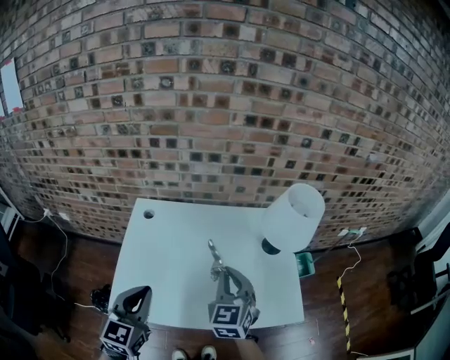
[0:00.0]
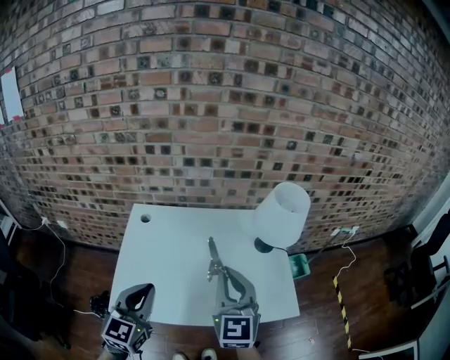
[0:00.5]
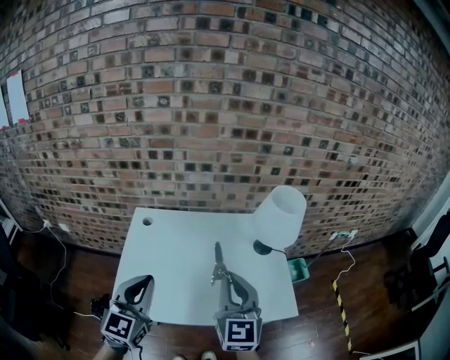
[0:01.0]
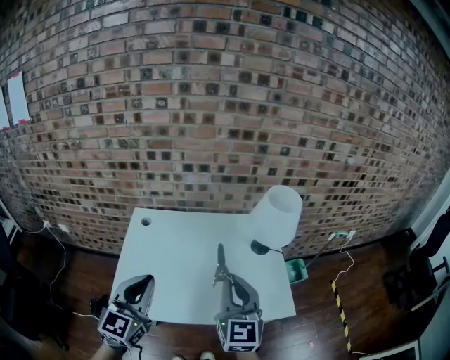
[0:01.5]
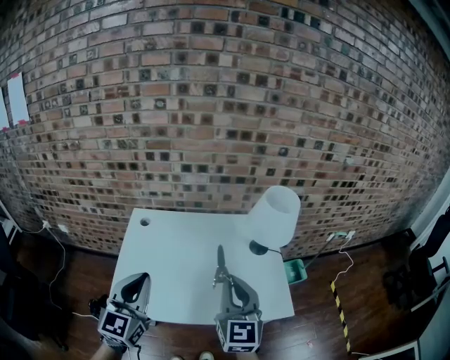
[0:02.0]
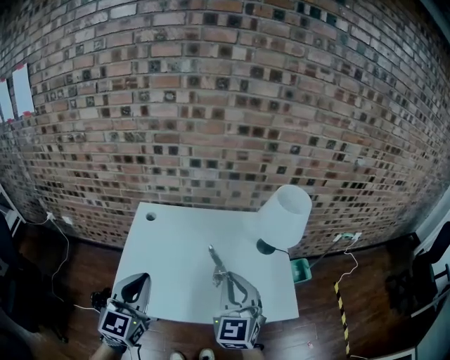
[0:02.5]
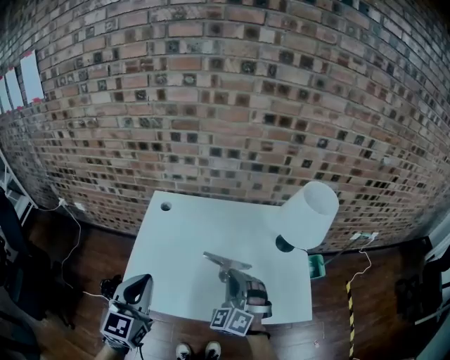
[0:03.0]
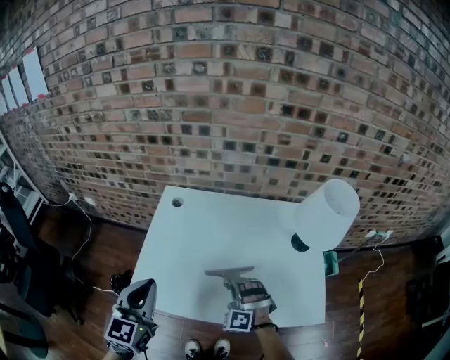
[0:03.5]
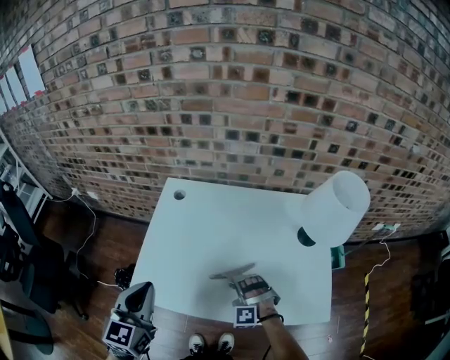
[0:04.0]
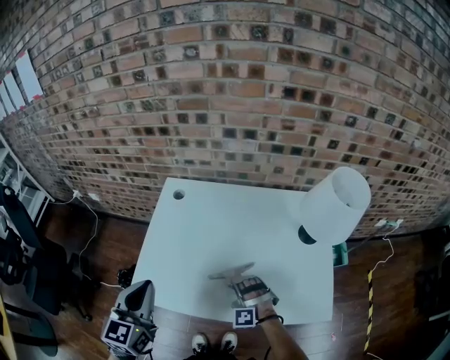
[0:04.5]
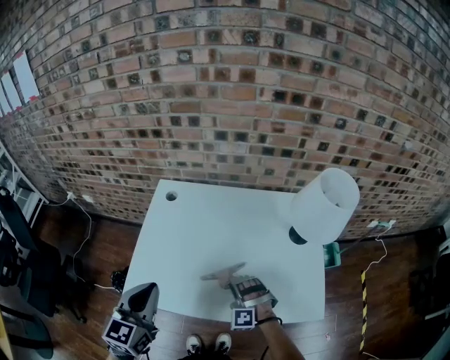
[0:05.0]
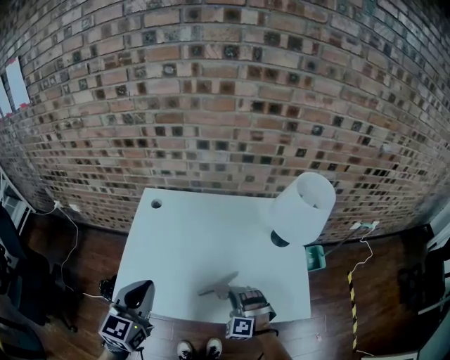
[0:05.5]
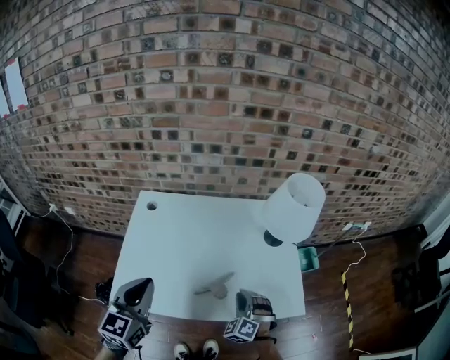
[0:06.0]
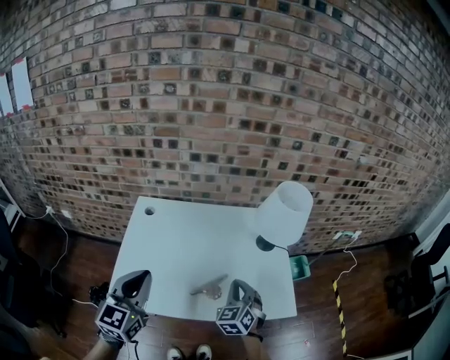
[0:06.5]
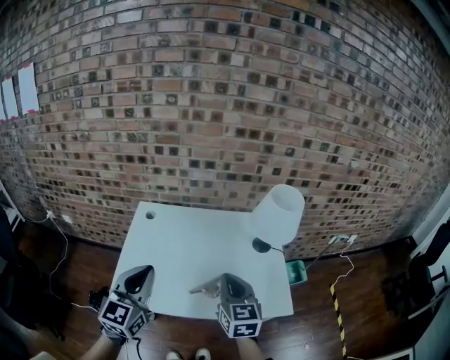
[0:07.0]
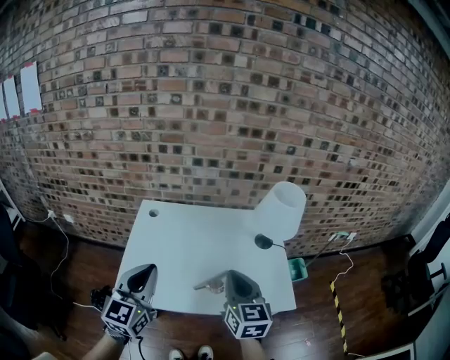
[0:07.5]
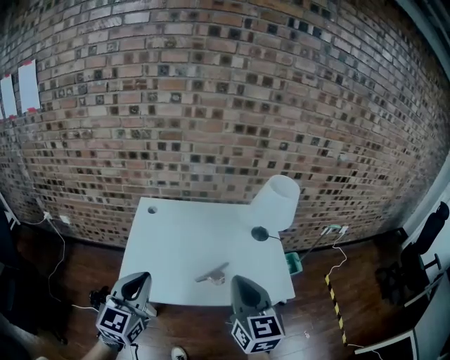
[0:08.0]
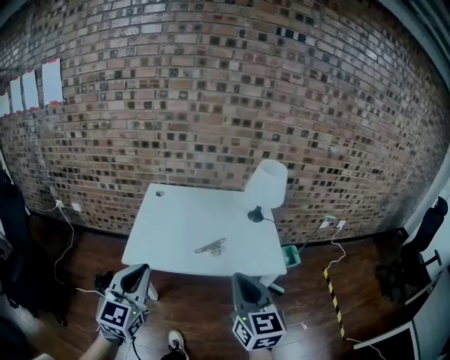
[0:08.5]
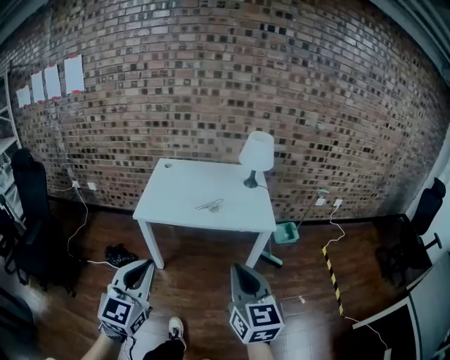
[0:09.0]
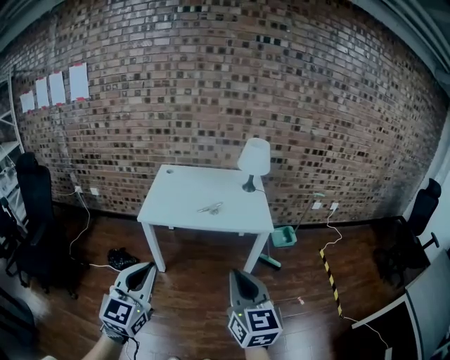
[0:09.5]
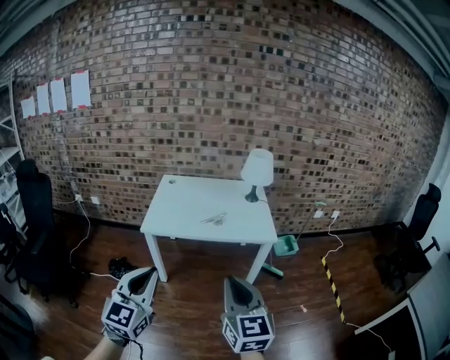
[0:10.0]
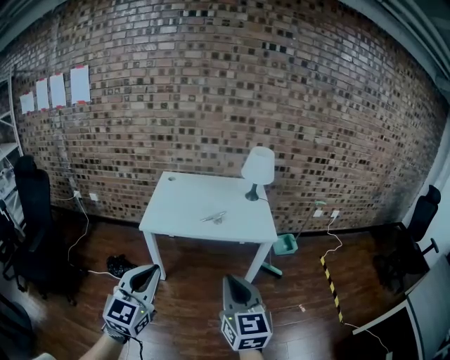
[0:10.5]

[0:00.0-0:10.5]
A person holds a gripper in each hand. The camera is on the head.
0:00.0 to 0:02.0: The left gripper goes approximately 10 cm upward; the right gripper moves upward and backward, some 15 cm, and swivels about 20 degrees.
0:02.0 to 0:04.0: The left gripper heads downward and to the left, covering approximately 10 cm, and turns by roughly 20 degrees; the right gripper is displaced downward by roughly 35 cm, and twists approximately 80 degrees counterclockwise, seen from behind.
0:04.0 to 0:06.5: The right gripper shifts roughly 20 cm upward and to the right, twists about 70 degrees clockwise, seen from behind, and opens, then closes again; the left gripper heads to the right and upward, covering roughly 10 cm.
0:06.5 to 0:08.5: The right gripper moves backward and upward, some 35 cm, and turns by about 40 degrees; the left gripper shifts some 25 cm backward.
0:08.5 to 0:10.5: The grippers both shift backward by approximately 25 cm.

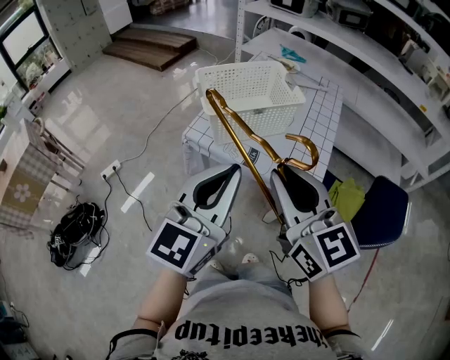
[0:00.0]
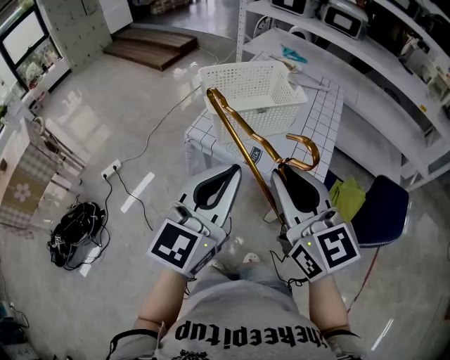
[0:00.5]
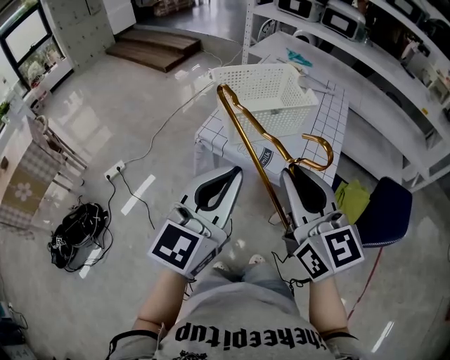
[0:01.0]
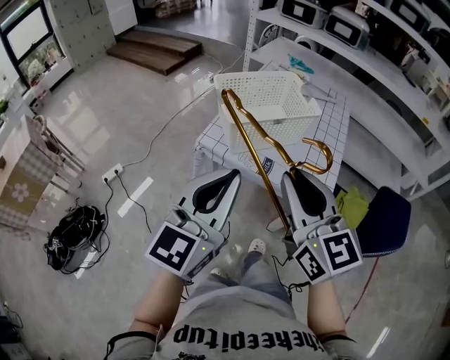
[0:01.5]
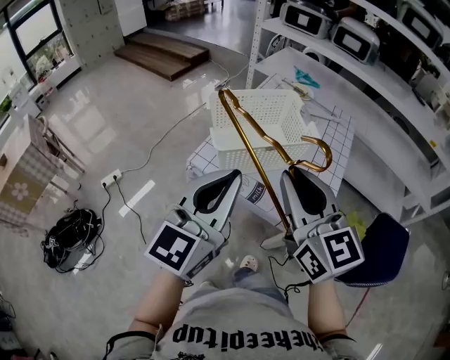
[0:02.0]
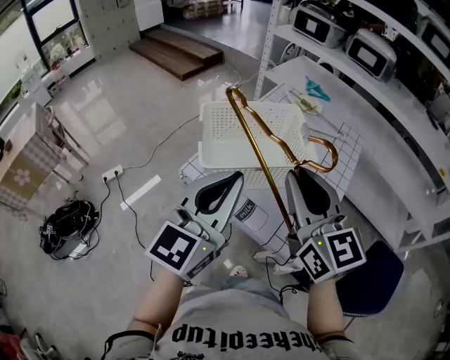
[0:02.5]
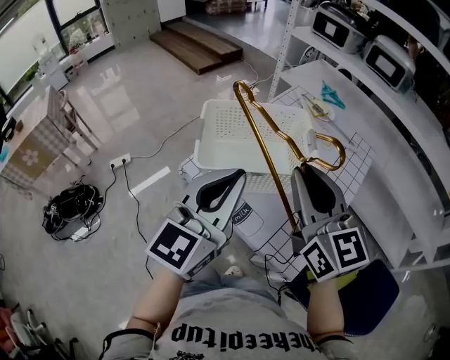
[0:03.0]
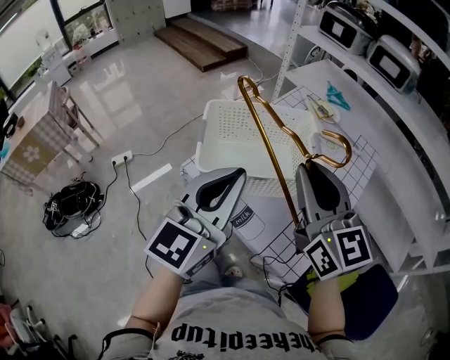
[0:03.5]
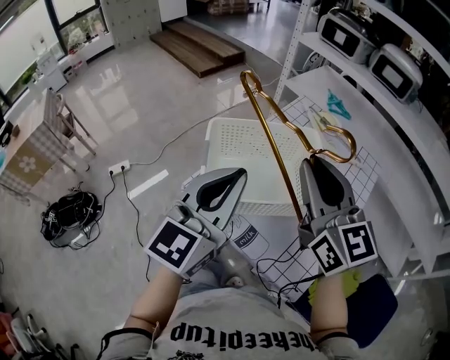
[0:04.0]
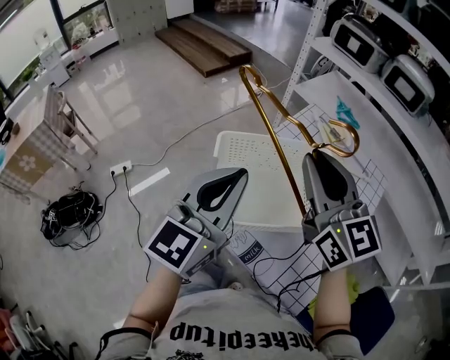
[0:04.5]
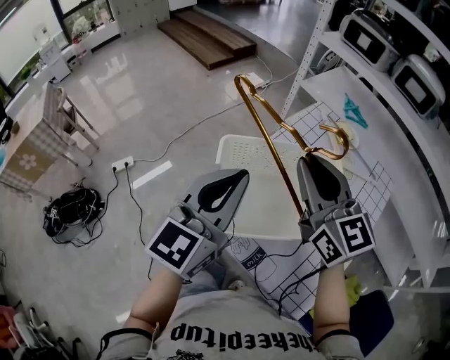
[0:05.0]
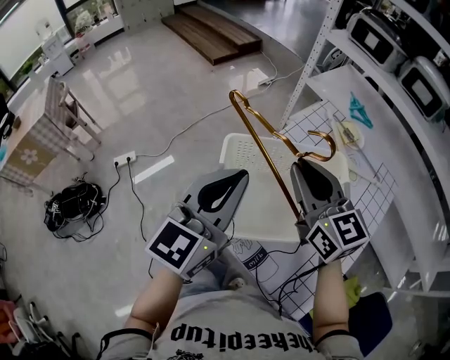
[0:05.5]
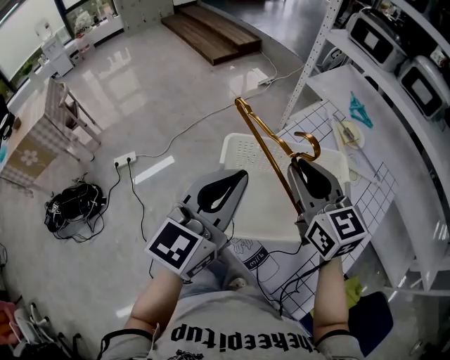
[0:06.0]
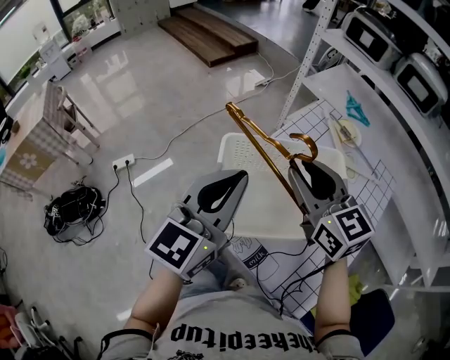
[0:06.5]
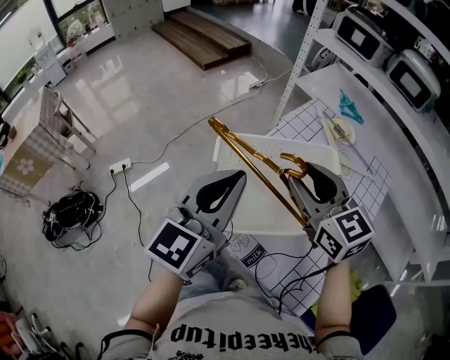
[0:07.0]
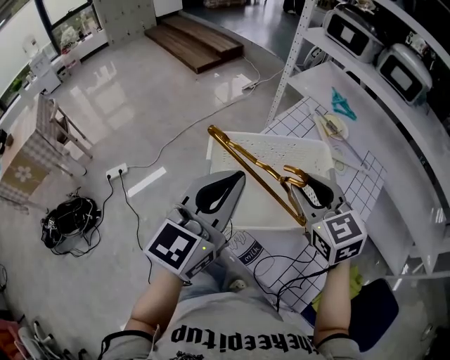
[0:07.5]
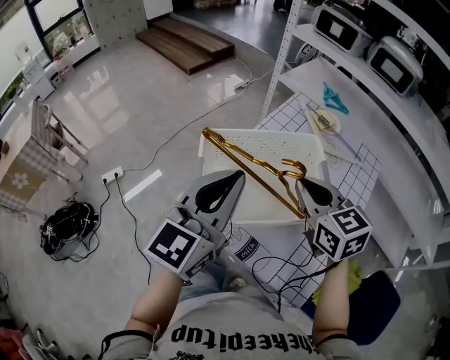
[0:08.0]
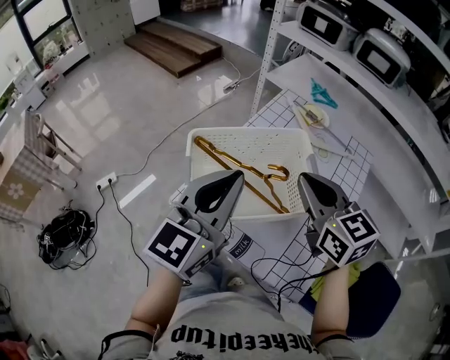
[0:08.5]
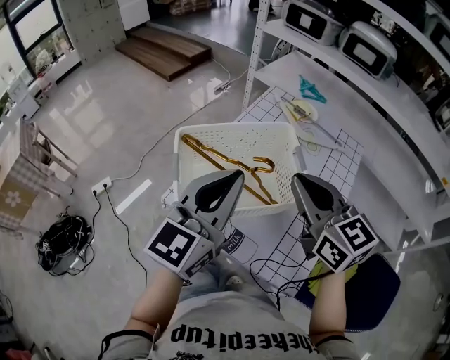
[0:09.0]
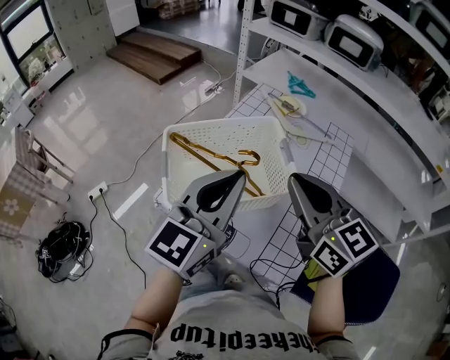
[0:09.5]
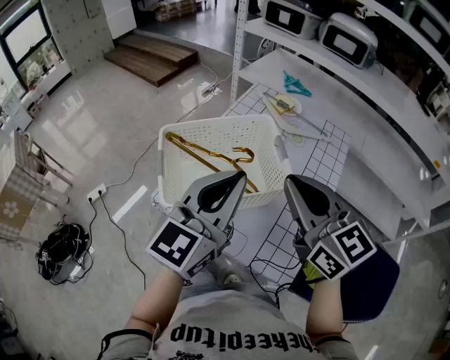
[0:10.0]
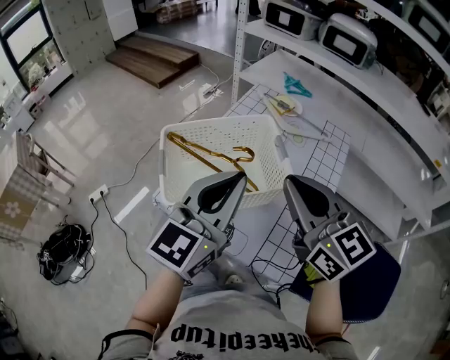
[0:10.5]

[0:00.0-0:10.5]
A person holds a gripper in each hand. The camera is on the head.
0:00.0 to 0:02.0: The grippers both shift forward by about 10 cm.
0:02.0 to 0:04.0: The two grippers go roughly 15 cm forward.
0:04.0 to 0:06.5: The left gripper moves forward, some 10 cm; the right gripper moves forward, downward and to the left, roughly 15 cm, and opens up.
0:06.5 to 0:08.5: The left gripper shifts some 5 cm to the right, while the right gripper moves to the right and backward, about 10 cm, and closes its fingers.
0:08.5 to 0:10.5: The left gripper moves to the right, roughly 10 cm; the right gripper travels backward and upward by about 10 cm.

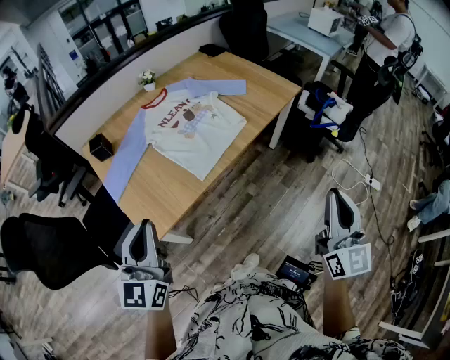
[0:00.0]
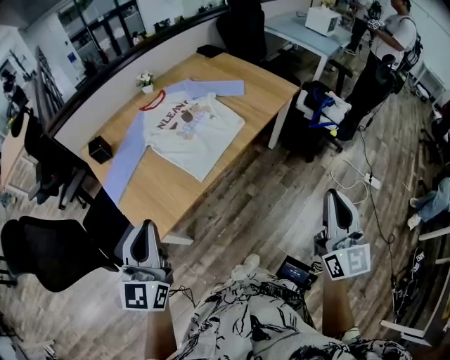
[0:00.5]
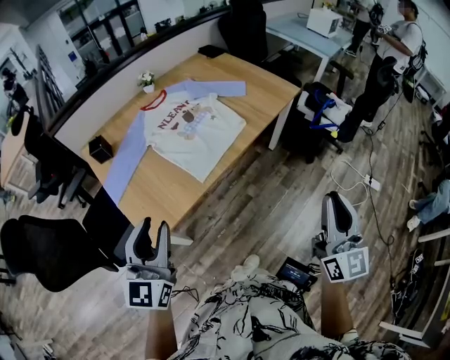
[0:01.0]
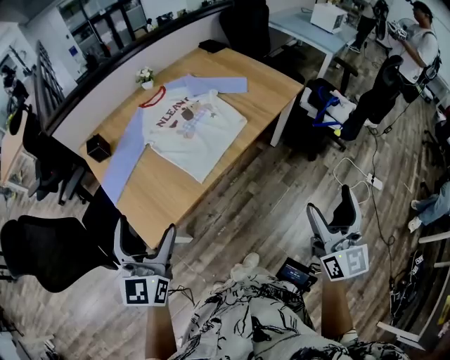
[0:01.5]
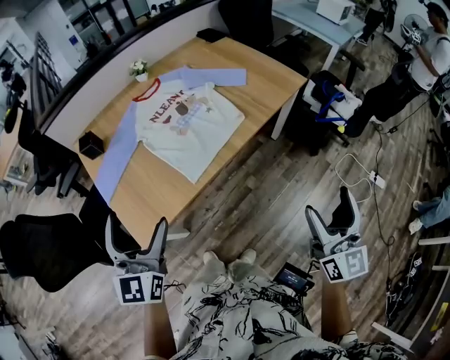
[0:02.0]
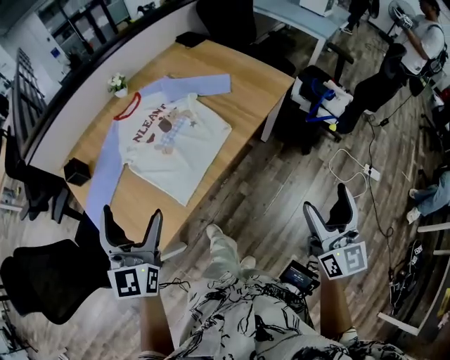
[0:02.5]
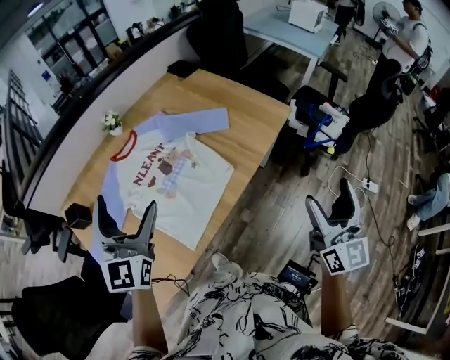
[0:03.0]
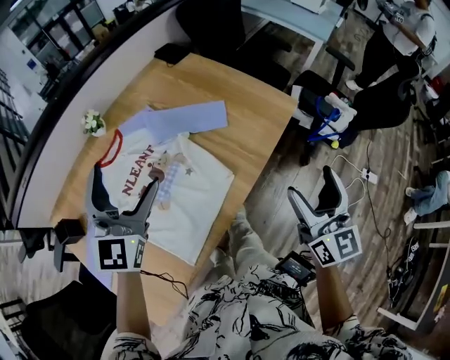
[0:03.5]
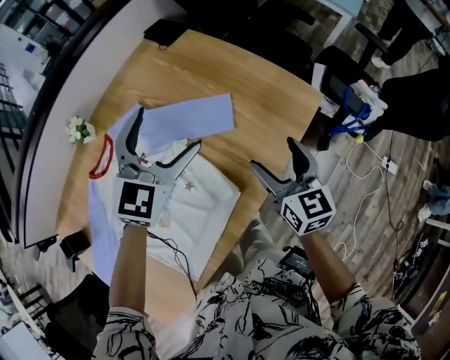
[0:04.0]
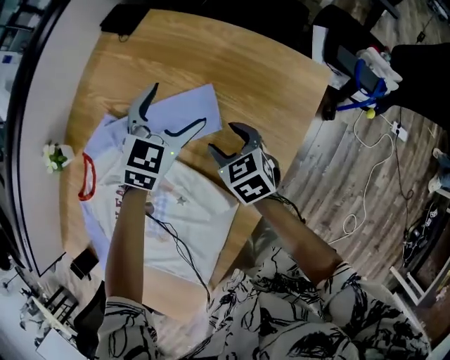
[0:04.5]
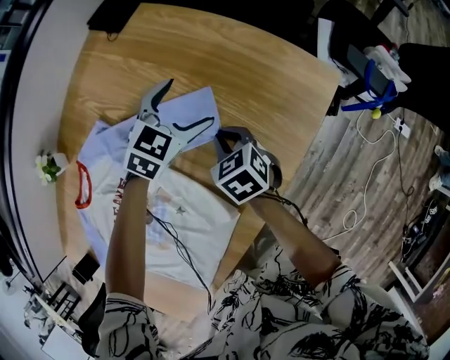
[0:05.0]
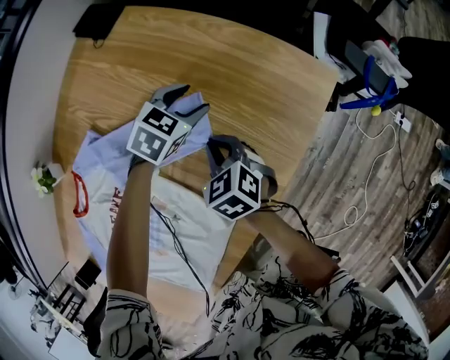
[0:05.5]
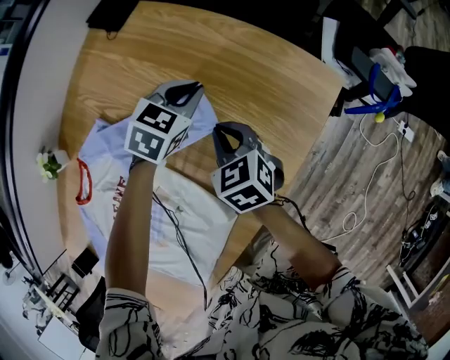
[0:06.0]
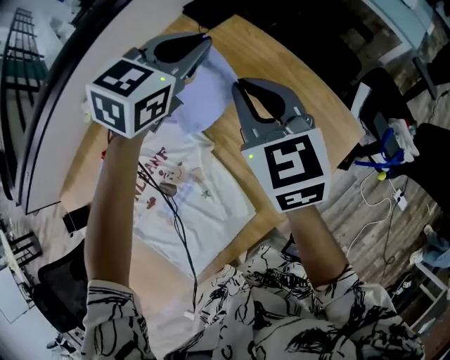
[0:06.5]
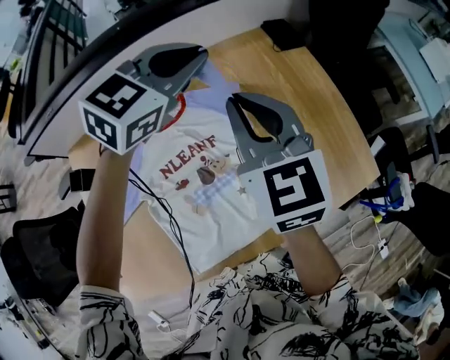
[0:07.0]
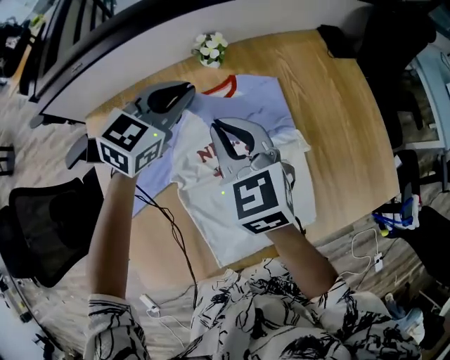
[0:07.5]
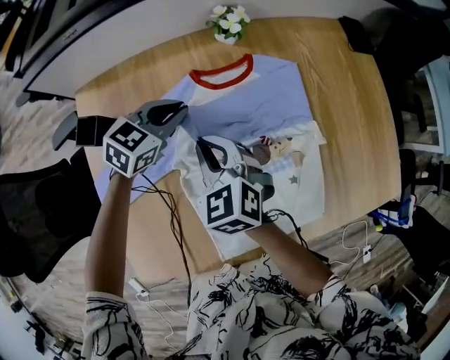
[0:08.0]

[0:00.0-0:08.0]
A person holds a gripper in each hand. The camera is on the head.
0:00.0 to 0:02.0: Both grippers move forward, about 5 cm. The right gripper opens. The left gripper opens.
0:02.0 to 0:04.0: Both grippers are carried forward, about 60 cm. The left gripper rotates about 40 degrees. The right gripper changes its angle by about 20 degrees.
0:04.0 to 0:06.0: The right gripper is displaced downward, forward and to the left by some 25 cm, swivels roughly 30 degrees, and closes its fingers. Meanwhile the left gripper goes roughly 30 cm downward and forward, changes its angle by some 40 degrees, and closes.
0:06.0 to 0:08.0: The pair of grippers is taken approximately 60 cm. The left gripper swivels roughly 40 degrees; the right gripper twists roughly 40 degrees counterclockwise, seen from behind.
